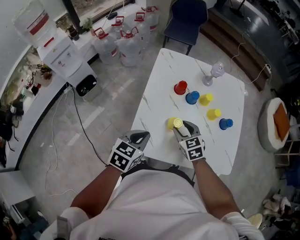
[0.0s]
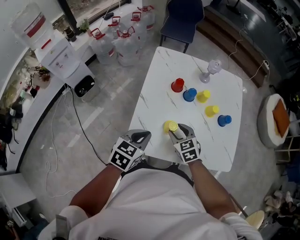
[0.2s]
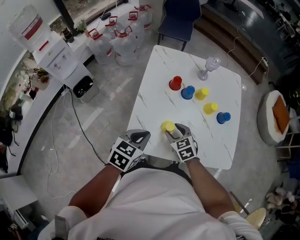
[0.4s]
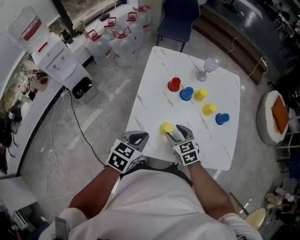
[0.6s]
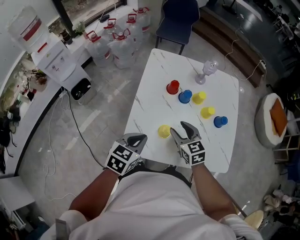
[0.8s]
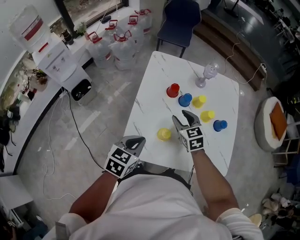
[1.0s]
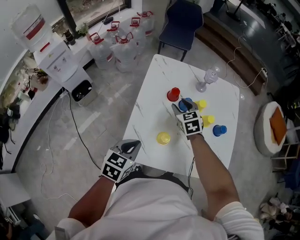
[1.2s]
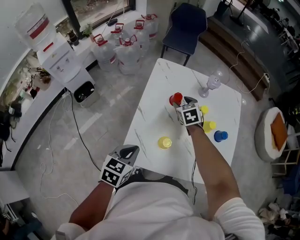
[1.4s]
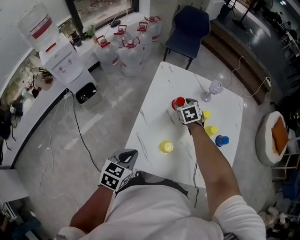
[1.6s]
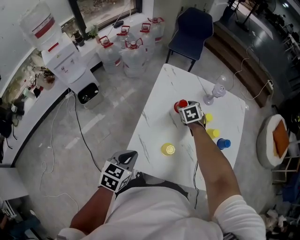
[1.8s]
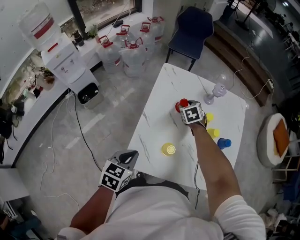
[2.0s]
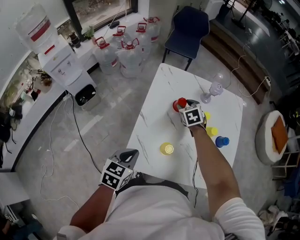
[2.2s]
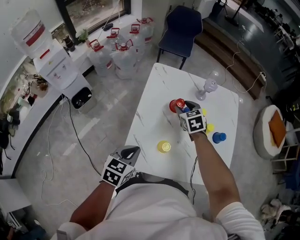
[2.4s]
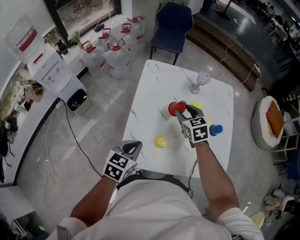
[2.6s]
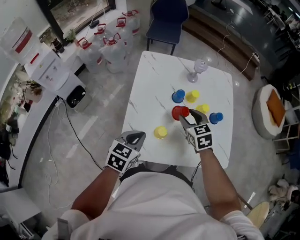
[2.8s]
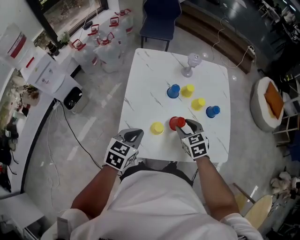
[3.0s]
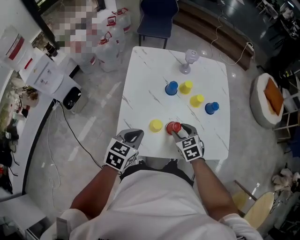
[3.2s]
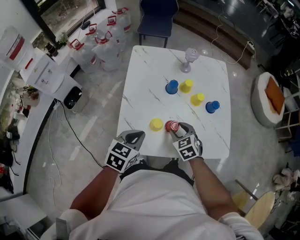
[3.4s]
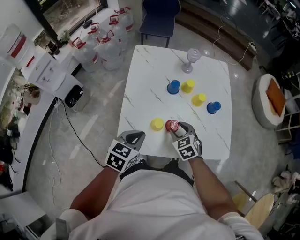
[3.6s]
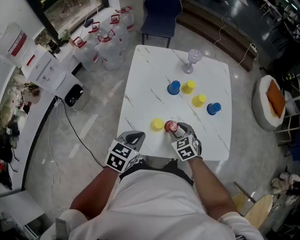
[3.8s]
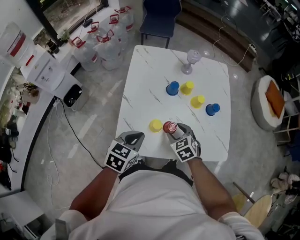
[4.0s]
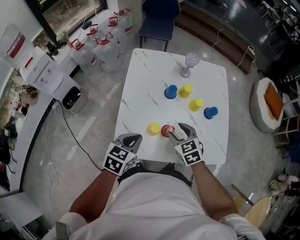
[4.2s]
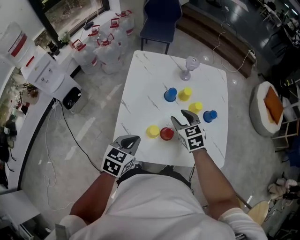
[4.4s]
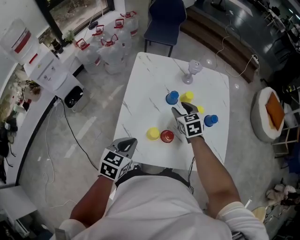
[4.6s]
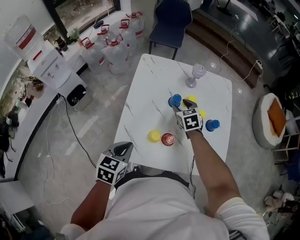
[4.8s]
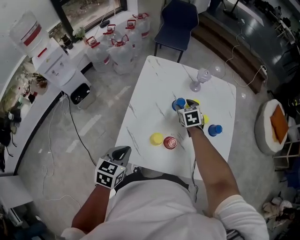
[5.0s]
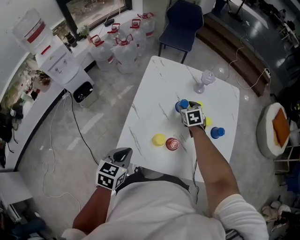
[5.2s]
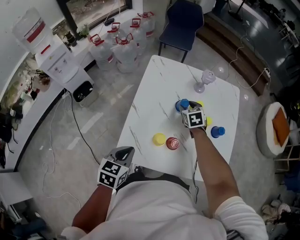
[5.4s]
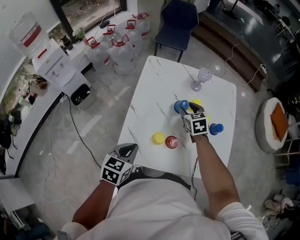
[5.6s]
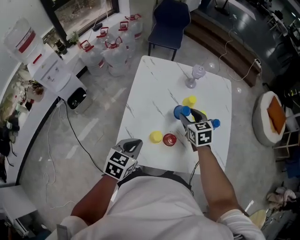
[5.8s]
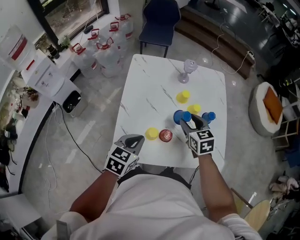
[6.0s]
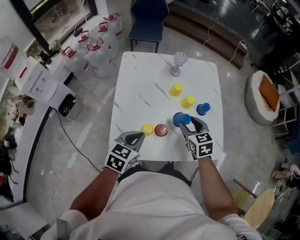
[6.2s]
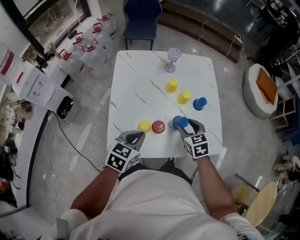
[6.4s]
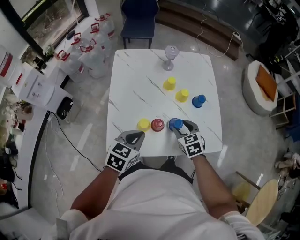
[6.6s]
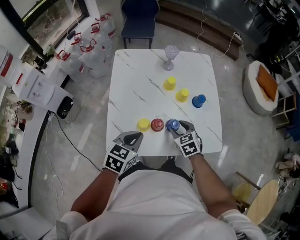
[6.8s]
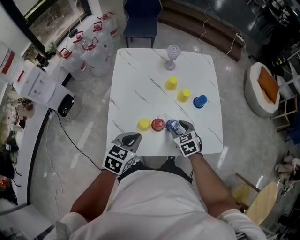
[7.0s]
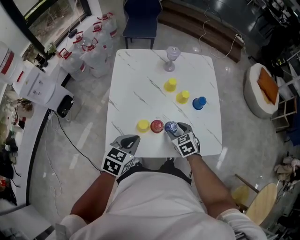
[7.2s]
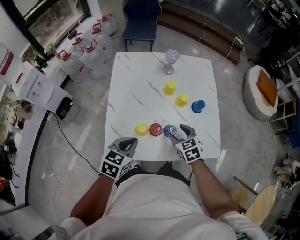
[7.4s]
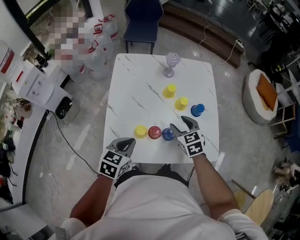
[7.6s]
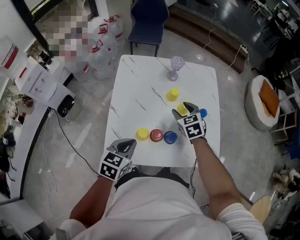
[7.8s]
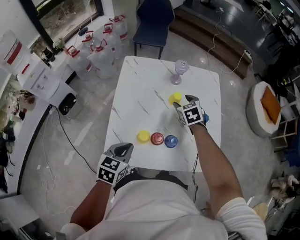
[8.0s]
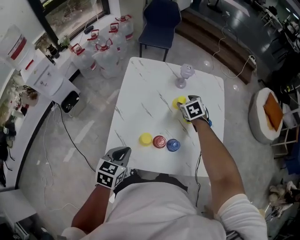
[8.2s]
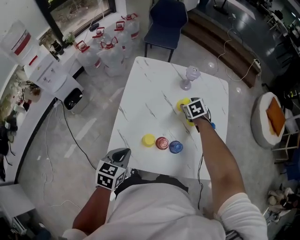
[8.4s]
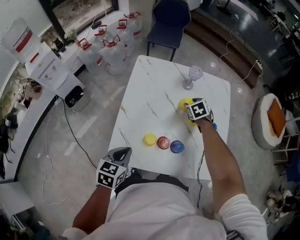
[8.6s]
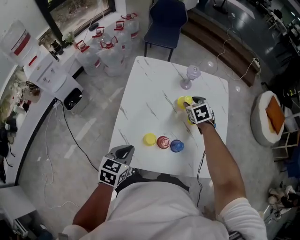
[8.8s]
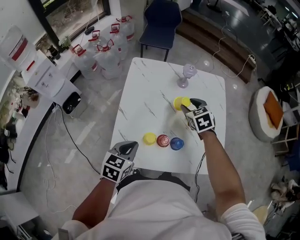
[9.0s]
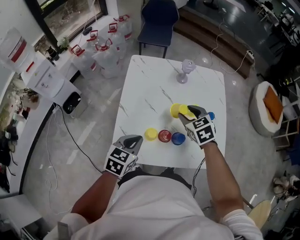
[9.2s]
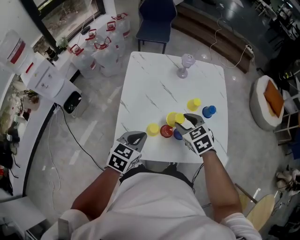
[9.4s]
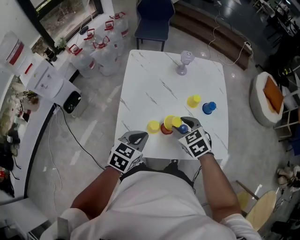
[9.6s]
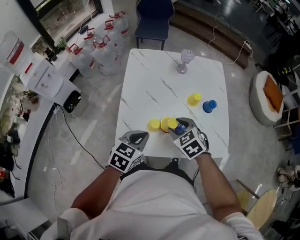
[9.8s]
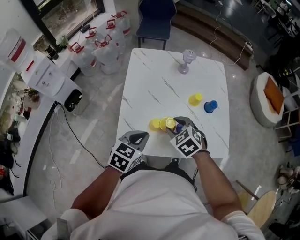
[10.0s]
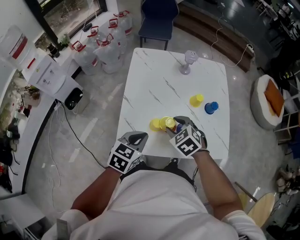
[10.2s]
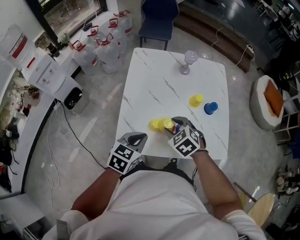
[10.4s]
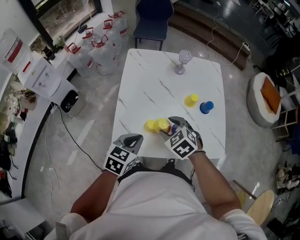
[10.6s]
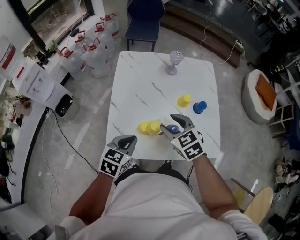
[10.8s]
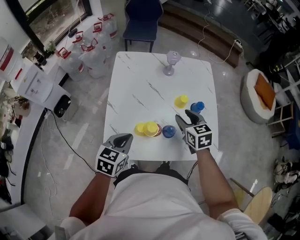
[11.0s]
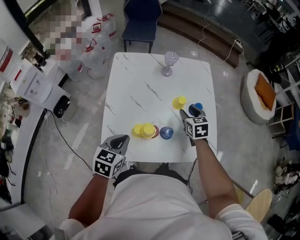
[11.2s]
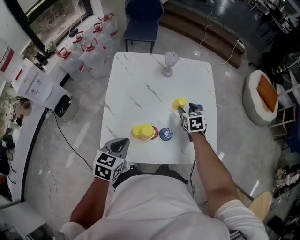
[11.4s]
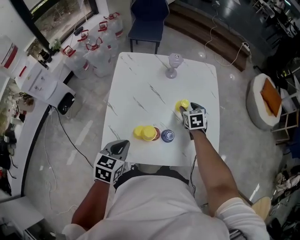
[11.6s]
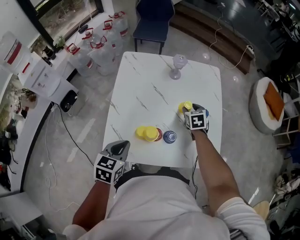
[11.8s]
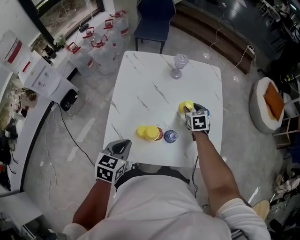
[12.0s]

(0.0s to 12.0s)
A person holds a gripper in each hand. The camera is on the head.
0.0s - 1.6s: The right gripper travels forward by some 20 cm.
1.6s - 3.0s: The left gripper moves to the right, roughly 5 cm. The right gripper travels backward and to the right by approximately 25 cm.
3.0s - 4.4s: The right gripper travels forward by about 5 cm.
4.4s - 6.0s: The right gripper travels forward and back again, roughly 15 cm each way.
6.0s - 7.6s: The right gripper reaches approximately 10 cm downward, then returns.
7.6s - 9.0s: The right gripper travels forward by some 15 cm.
9.0s - 10.4s: The right gripper shifts about 20 cm backward and to the left.
10.4s - 12.0s: The right gripper shifts approximately 25 cm forward and to the right, and changes its angle by approximately 40 degrees.

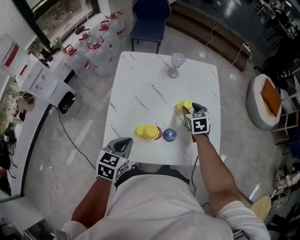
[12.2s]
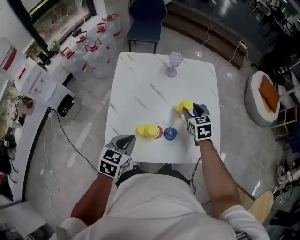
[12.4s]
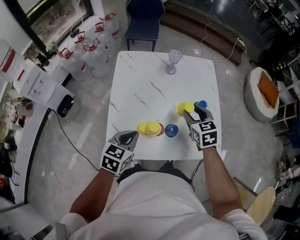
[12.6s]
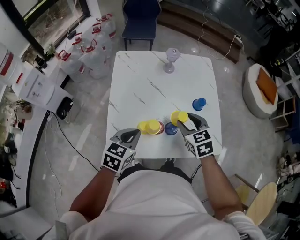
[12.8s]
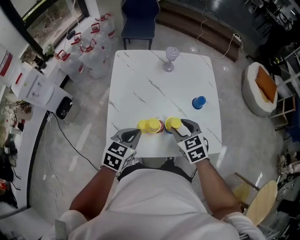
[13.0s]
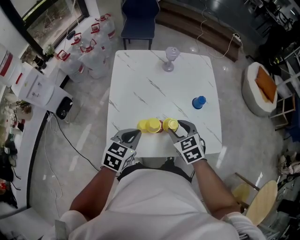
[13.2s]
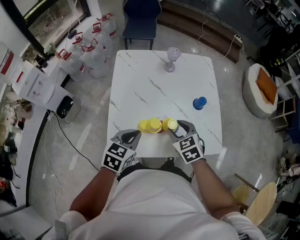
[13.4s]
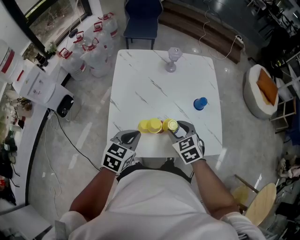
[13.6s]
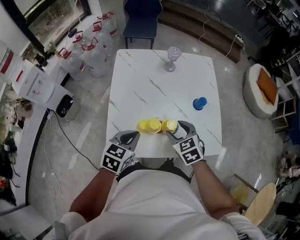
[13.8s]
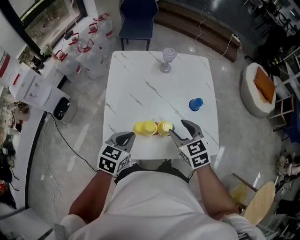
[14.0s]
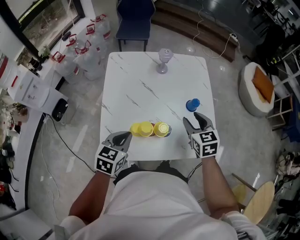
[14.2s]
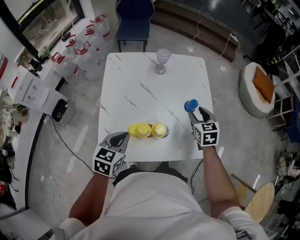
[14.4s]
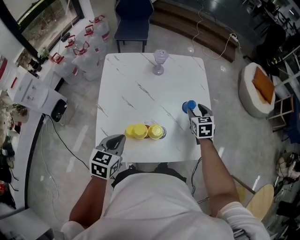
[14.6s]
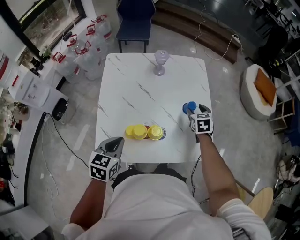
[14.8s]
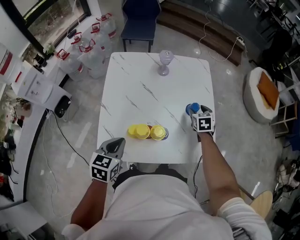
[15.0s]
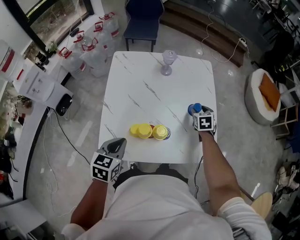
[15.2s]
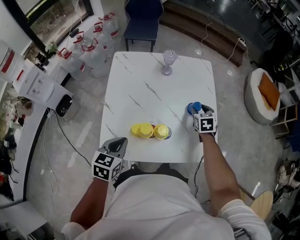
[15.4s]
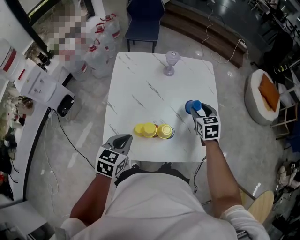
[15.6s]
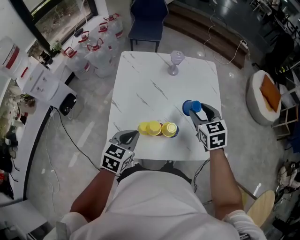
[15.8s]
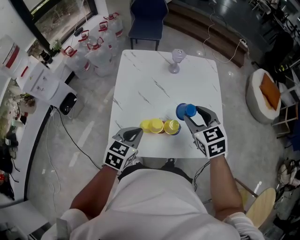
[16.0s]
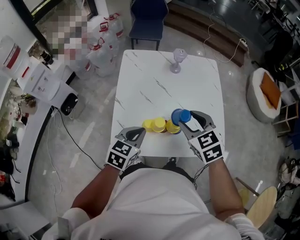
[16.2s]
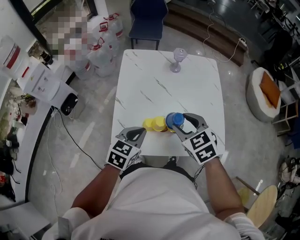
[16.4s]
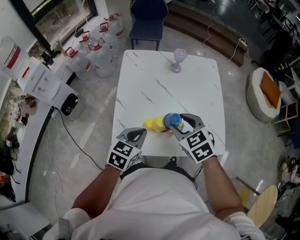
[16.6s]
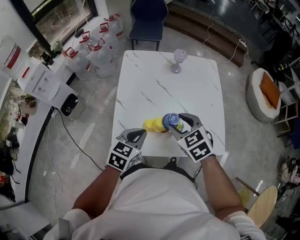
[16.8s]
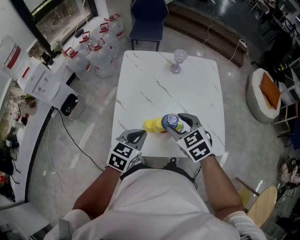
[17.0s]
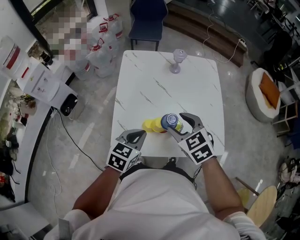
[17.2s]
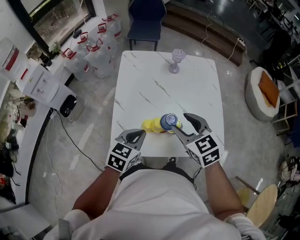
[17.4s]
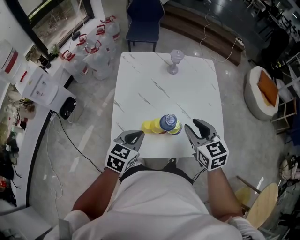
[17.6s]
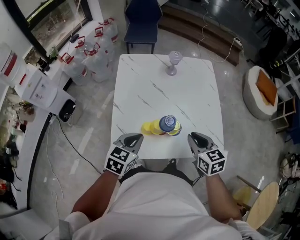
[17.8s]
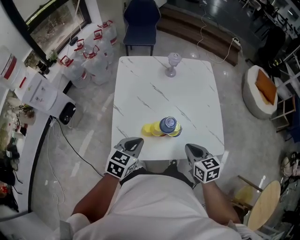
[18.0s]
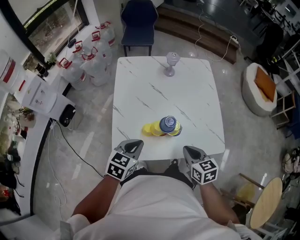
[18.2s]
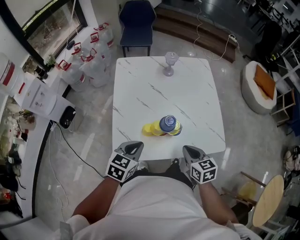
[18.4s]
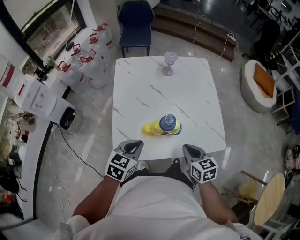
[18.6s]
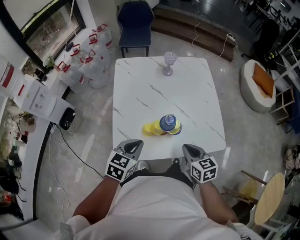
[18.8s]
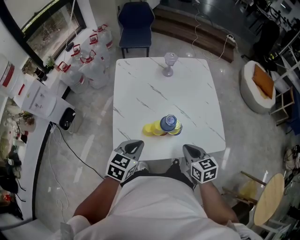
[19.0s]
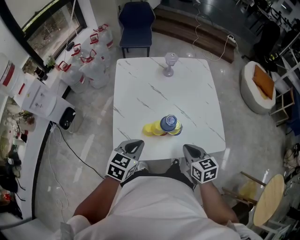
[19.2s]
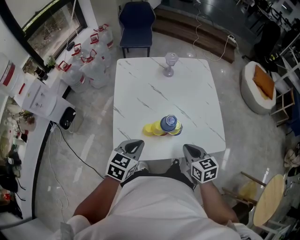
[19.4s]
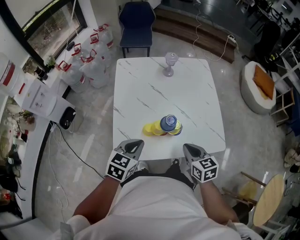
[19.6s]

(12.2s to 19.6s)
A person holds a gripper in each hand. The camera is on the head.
12.2s - 13.6s: The right gripper shifts roughly 20 cm backward and to the left.
13.6s - 15.2s: The right gripper goes roughly 25 cm forward, to the right and downward, and swivels approximately 30 degrees.
15.2s - 16.6s: The right gripper shifts roughly 35 cm to the left, backward and upward, and changes its angle by about 30 degrees.
16.6s - 18.2s: The right gripper moves backward, to the right and downward, roughly 15 cm, rotates approximately 30 degrees, and closes its fingers.
18.2s - 19.6s: Neither gripper changes place.

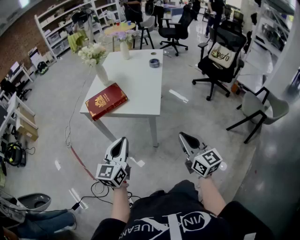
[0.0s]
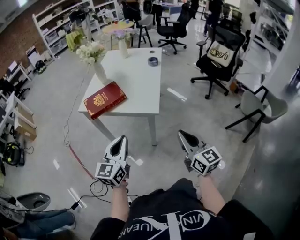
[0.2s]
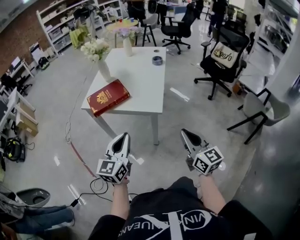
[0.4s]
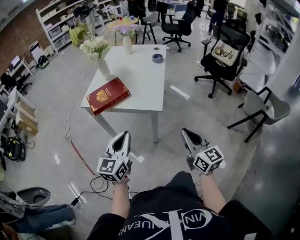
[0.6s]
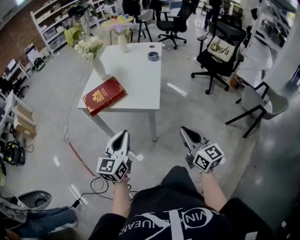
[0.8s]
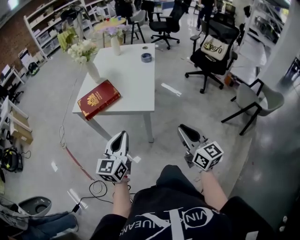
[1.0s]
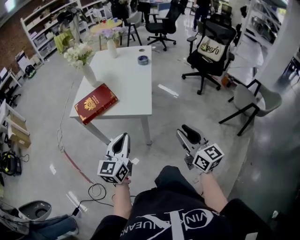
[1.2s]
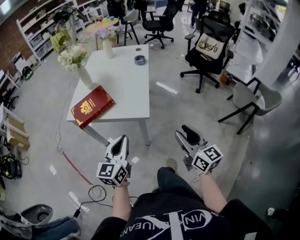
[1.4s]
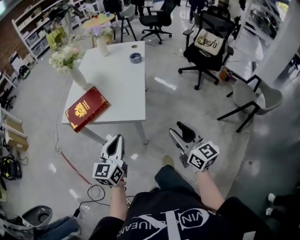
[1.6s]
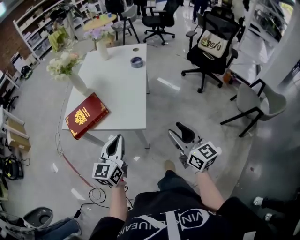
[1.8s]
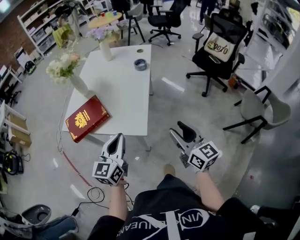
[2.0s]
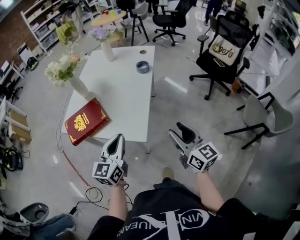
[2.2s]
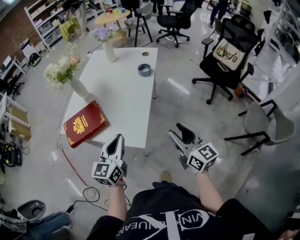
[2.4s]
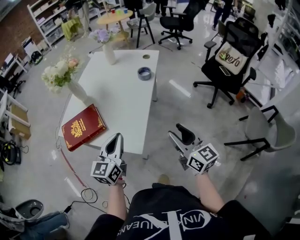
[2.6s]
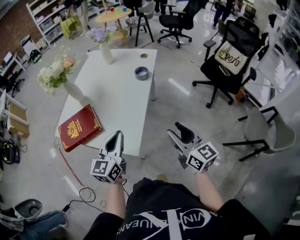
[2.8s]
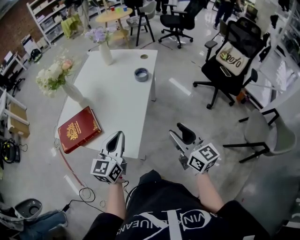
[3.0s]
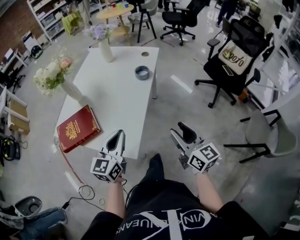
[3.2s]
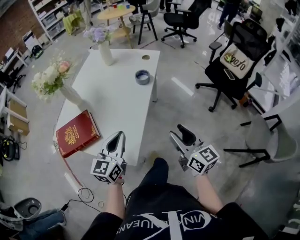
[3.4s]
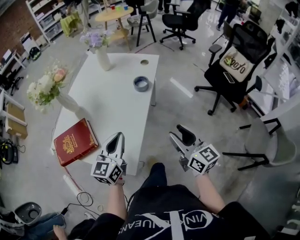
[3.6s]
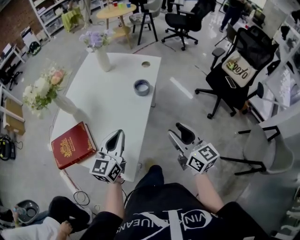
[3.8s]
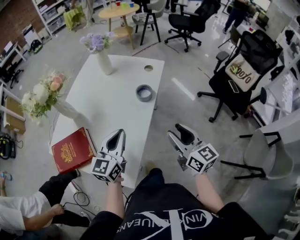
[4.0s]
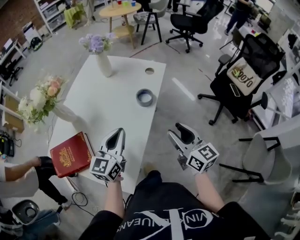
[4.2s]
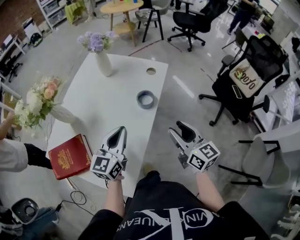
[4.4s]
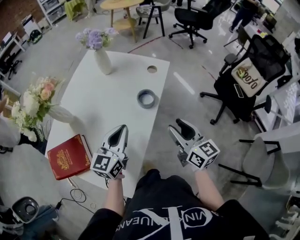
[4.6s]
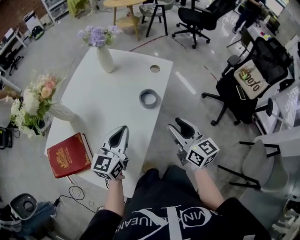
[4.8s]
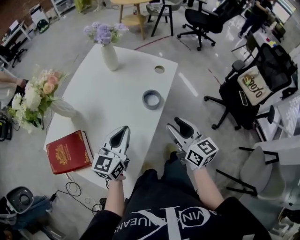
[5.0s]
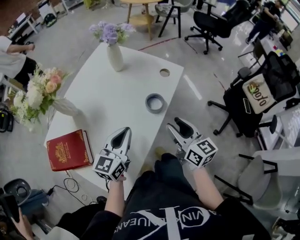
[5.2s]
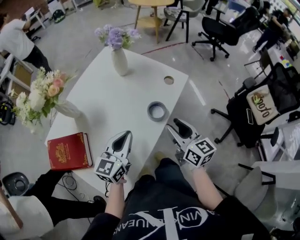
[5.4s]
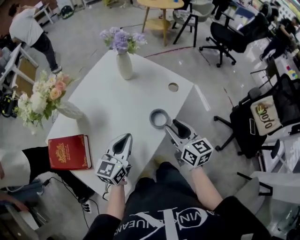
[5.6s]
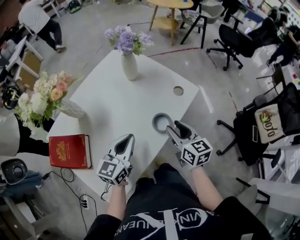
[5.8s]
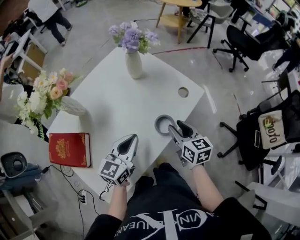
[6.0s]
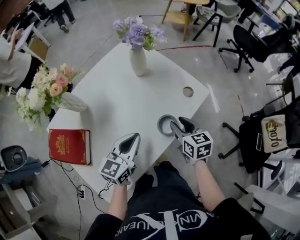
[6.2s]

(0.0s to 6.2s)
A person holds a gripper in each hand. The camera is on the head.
0.0s - 1.6s: Both grippers travel together forward, approximately 10 cm. The right gripper opens up.
1.6s - 3.2s: The two grippers go approximately 25 cm forward and to the right.
3.2s - 4.6s: Both grippers travel together forward, some 25 cm.
4.6s - 6.2s: The left gripper moves forward, some 10 cm. Meanwhile the right gripper travels forward and downward by roughly 20 cm, and changes its angle by approximately 30 degrees.
